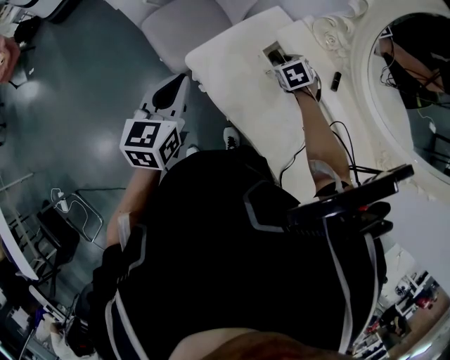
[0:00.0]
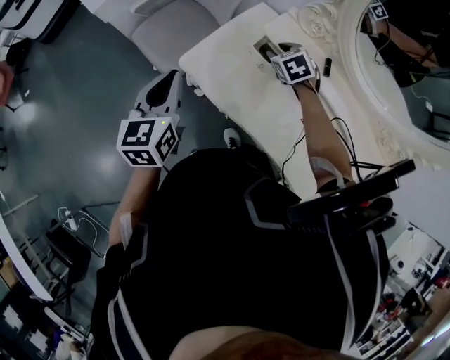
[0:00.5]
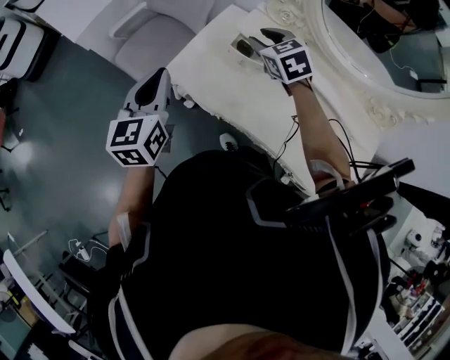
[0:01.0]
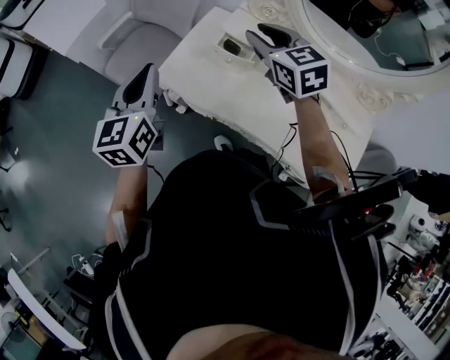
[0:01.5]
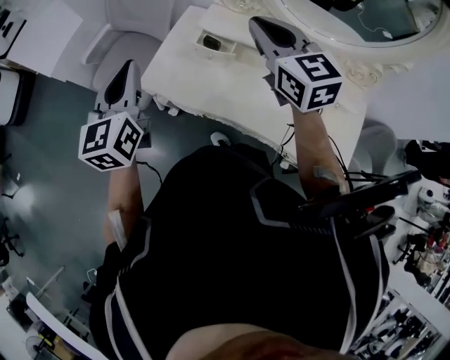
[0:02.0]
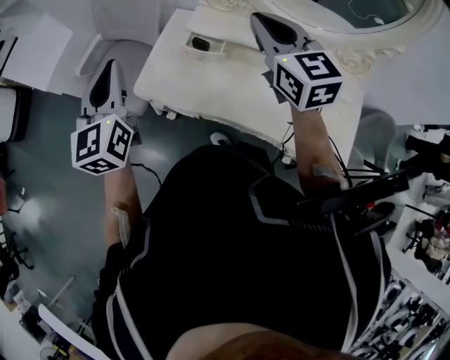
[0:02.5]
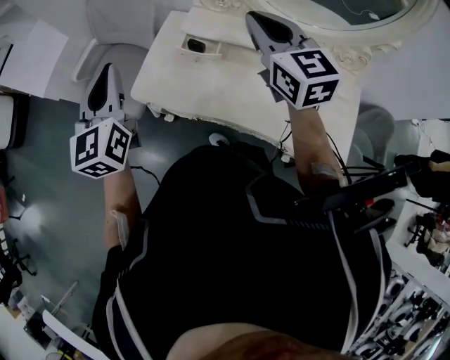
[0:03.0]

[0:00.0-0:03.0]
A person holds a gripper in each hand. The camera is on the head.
0:00.0 to 0:01.5: The left gripper is displaced upward by approximately 10 cm. Meanwhile the right gripper shifts approximately 30 cm upward, and angles its fingers upward, by roughly 40 degrees.
0:01.5 to 0:03.0: The right gripper moves to the right and upward, some 10 cm, rotates approximately 20 degrees, and closes its fingers. Meanwhile the left gripper shifts by approximately 5 cm.

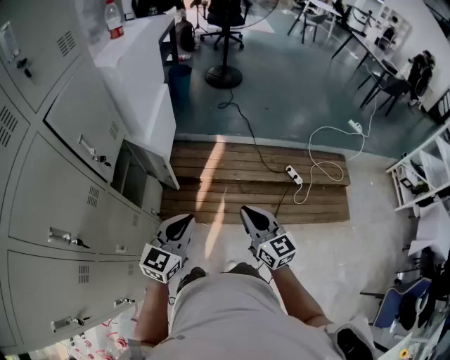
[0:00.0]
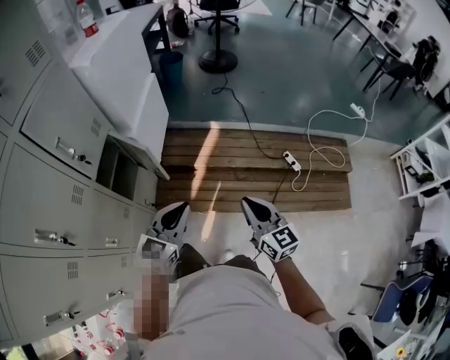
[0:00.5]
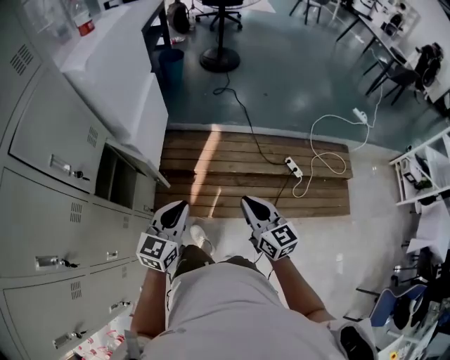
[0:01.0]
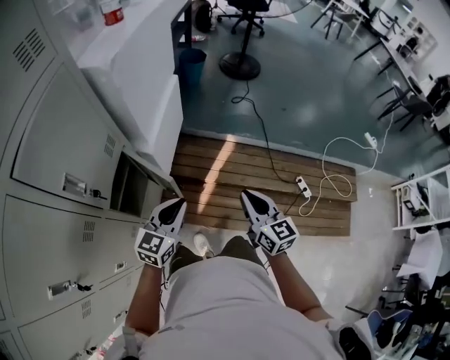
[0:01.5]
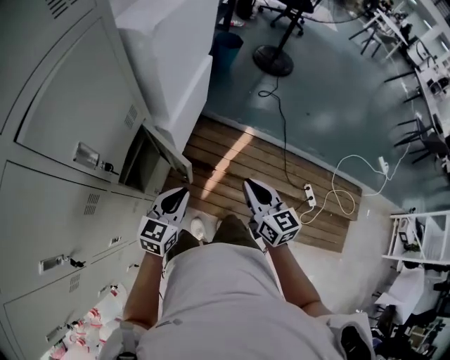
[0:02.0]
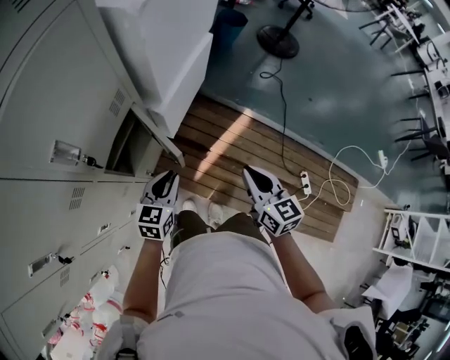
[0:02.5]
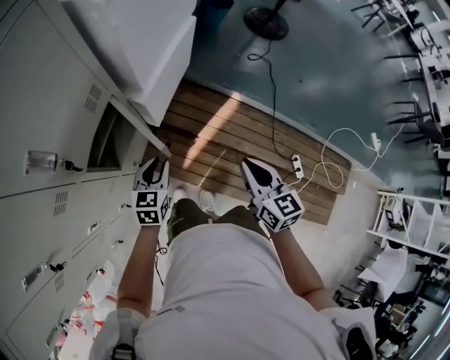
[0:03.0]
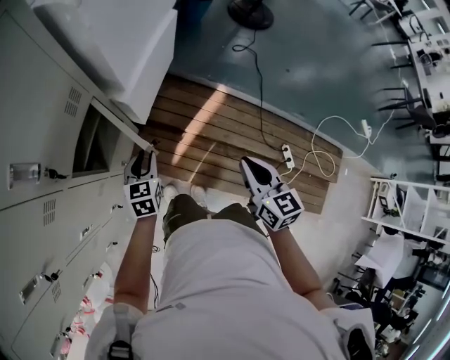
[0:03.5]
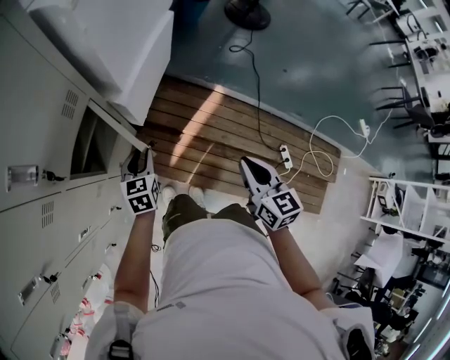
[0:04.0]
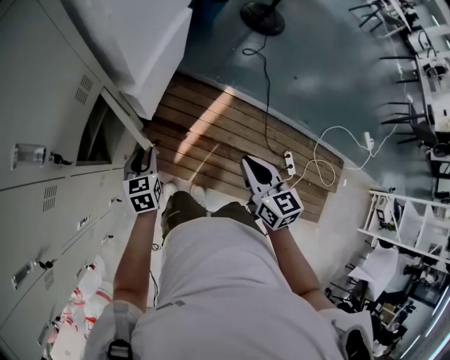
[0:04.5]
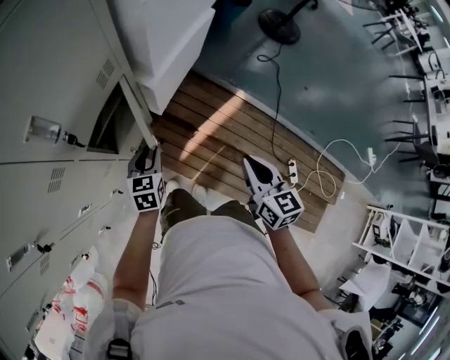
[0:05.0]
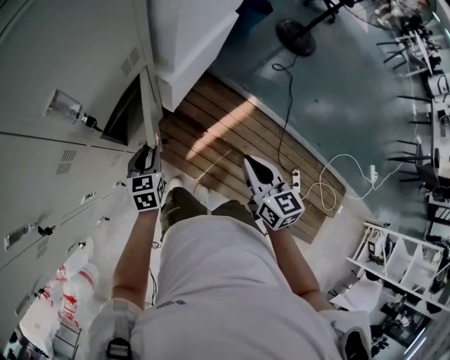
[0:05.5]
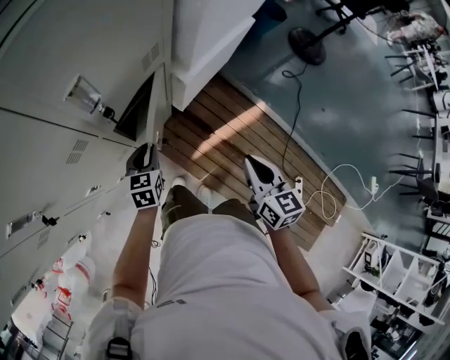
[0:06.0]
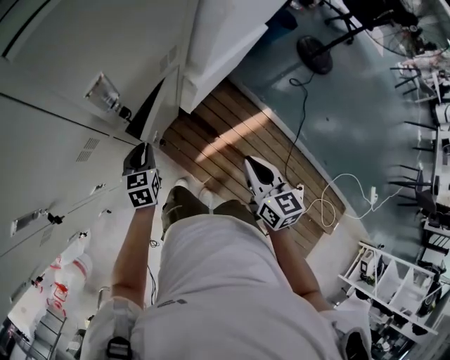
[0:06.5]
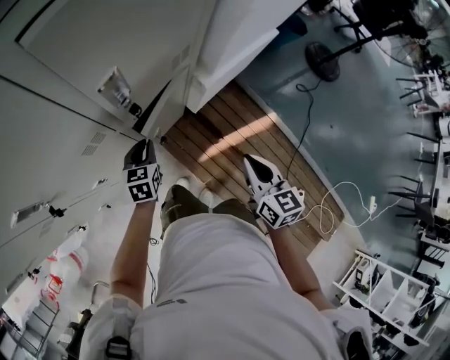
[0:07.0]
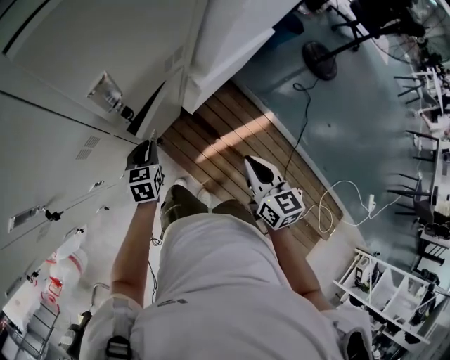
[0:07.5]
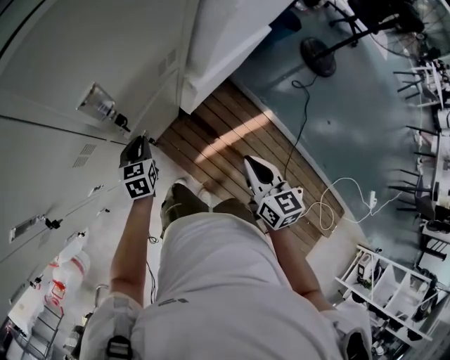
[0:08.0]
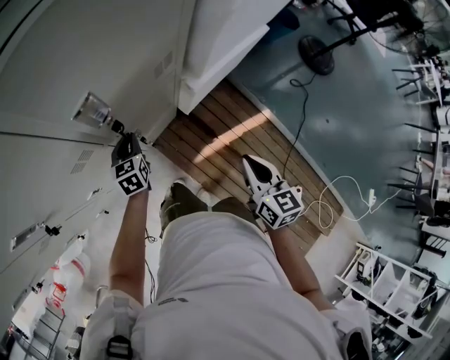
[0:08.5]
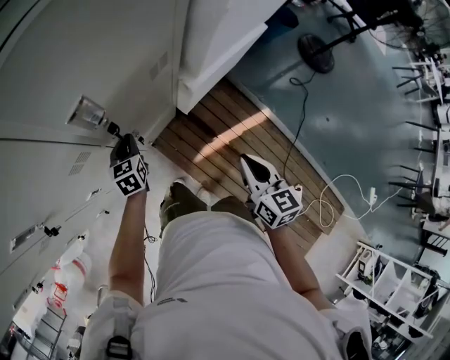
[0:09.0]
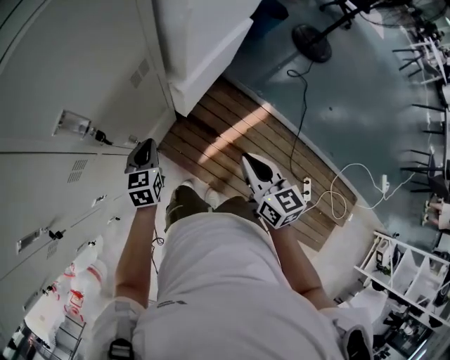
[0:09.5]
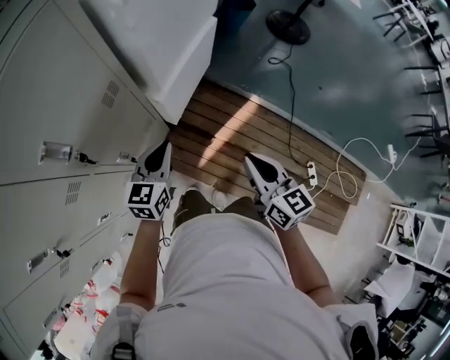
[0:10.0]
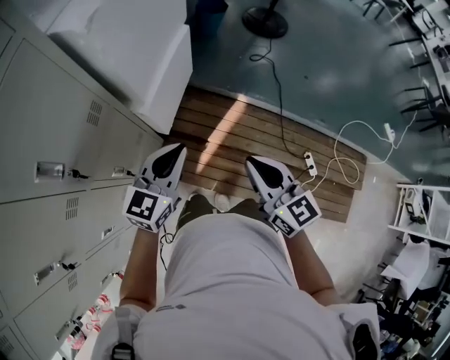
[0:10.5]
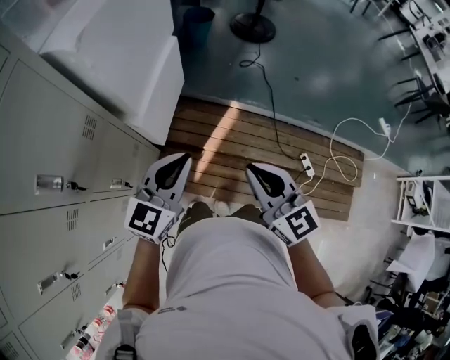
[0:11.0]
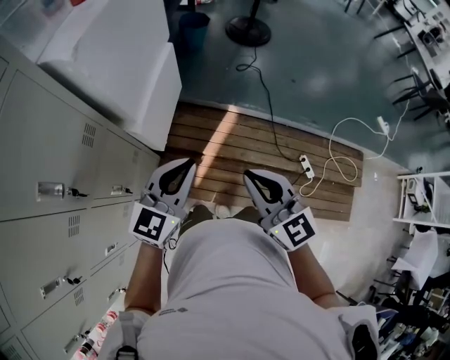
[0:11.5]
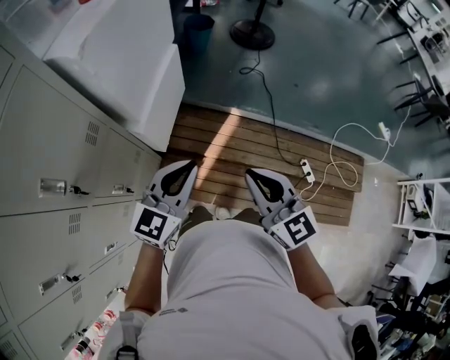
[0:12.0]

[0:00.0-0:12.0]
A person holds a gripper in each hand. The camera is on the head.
0:00.0 to 0:02.0: The left gripper shifts some 25 cm forward, to the left and downward, and rotates roughly 20 degrees. The right gripper travels forward by roughly 25 cm.
0:02.0 to 0:04.0: The left gripper goes roughly 15 cm downward and forward, rotates approximately 30 degrees, and opens its fingers, while the right gripper shifts roughly 10 cm to the right.
0:04.0 to 0:06.0: The two grippers go some 15 cm to the left.
0:06.0 to 0:08.0: The left gripper shifts approximately 5 cm forward.
0:08.0 to 0:10.0: The right gripper shifts by about 10 cm. Meanwhile the left gripper changes place by roughly 25 cm, and changes its angle by about 40 degrees.
0:10.0 to 0:12.0: The right gripper goes about 10 cm upward and to the right, and rotates some 20 degrees; the left gripper travels to the right and upward by some 20 cm, and rotates roughly 30 degrees.

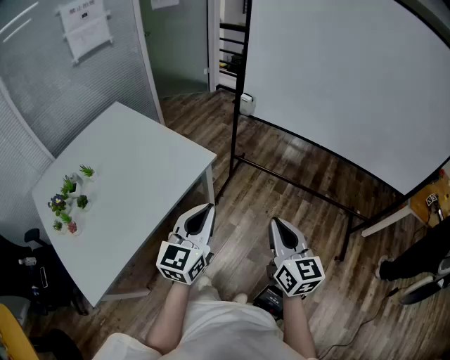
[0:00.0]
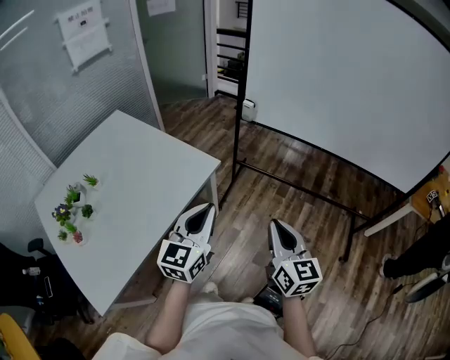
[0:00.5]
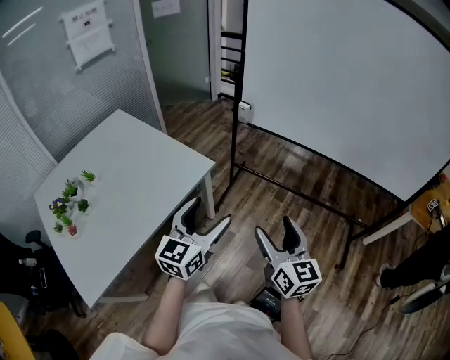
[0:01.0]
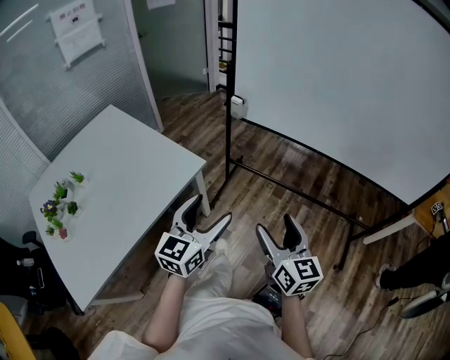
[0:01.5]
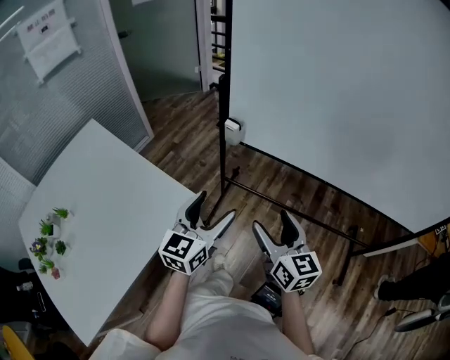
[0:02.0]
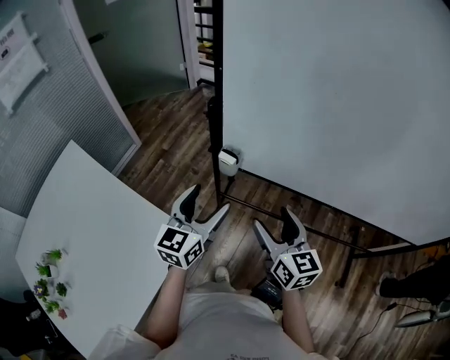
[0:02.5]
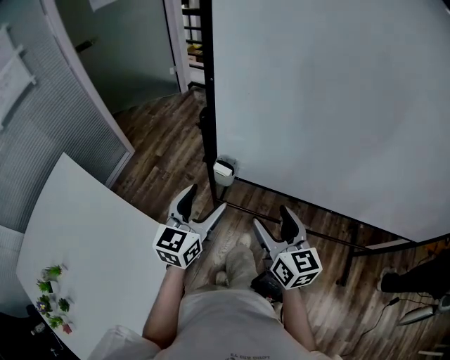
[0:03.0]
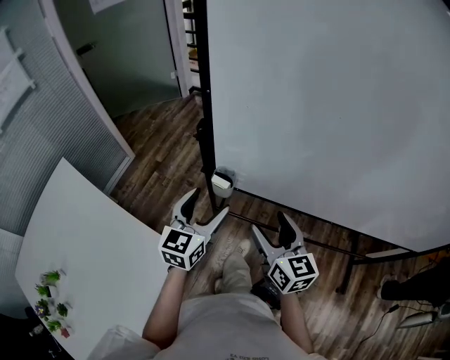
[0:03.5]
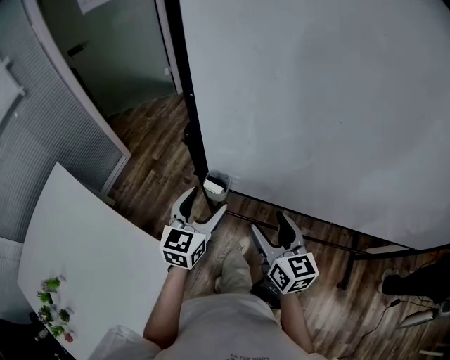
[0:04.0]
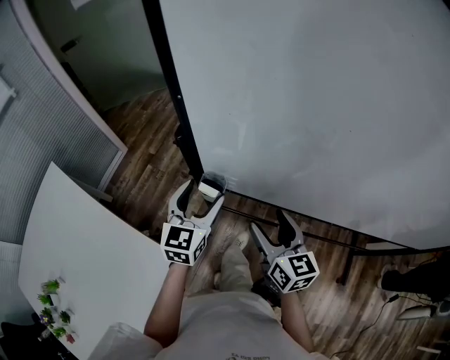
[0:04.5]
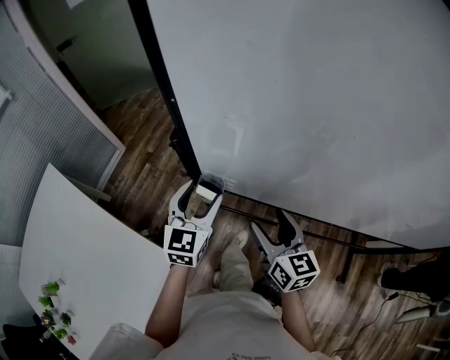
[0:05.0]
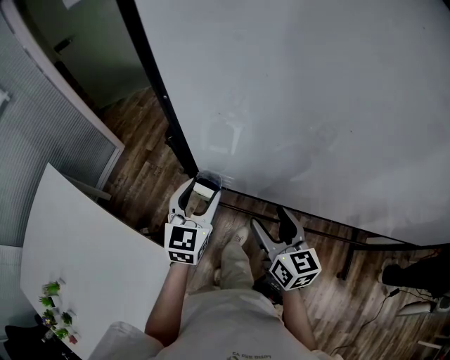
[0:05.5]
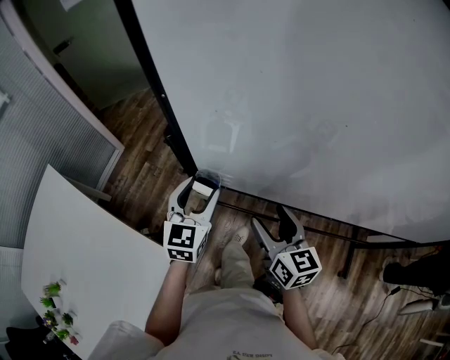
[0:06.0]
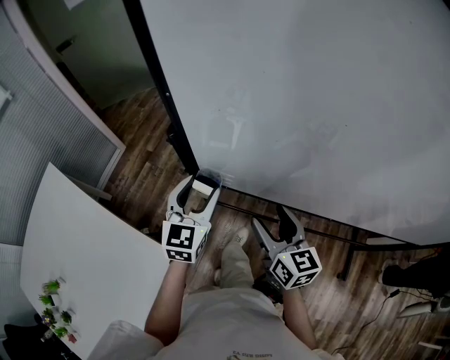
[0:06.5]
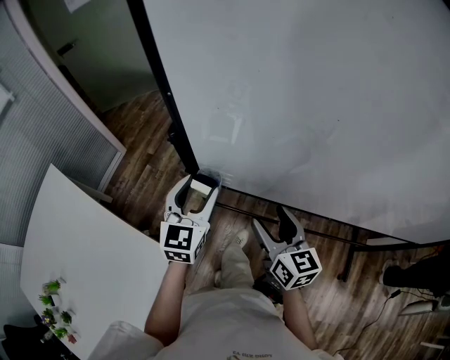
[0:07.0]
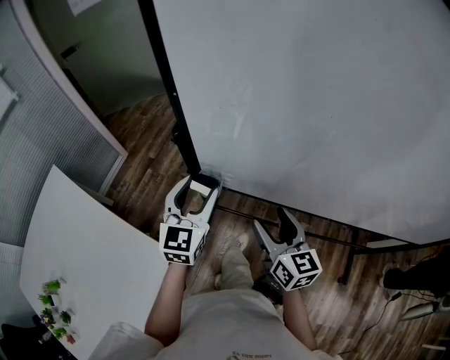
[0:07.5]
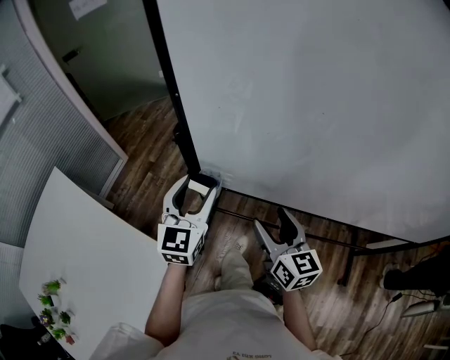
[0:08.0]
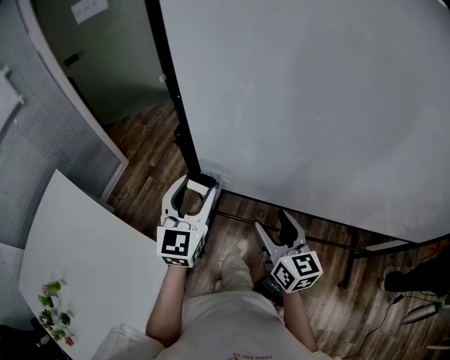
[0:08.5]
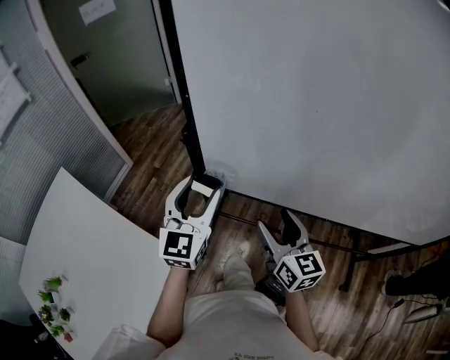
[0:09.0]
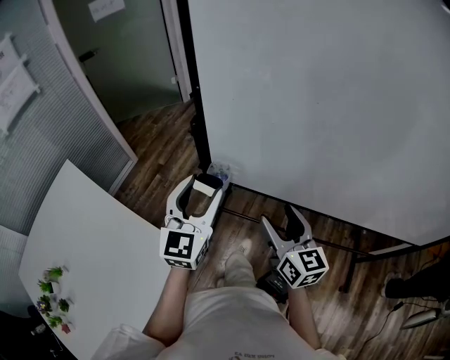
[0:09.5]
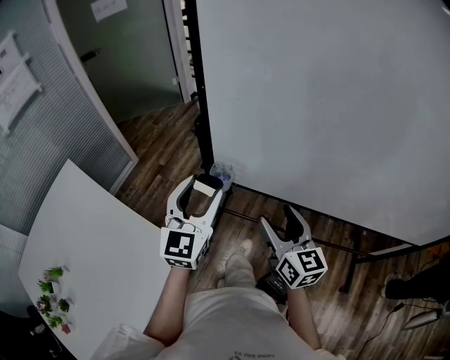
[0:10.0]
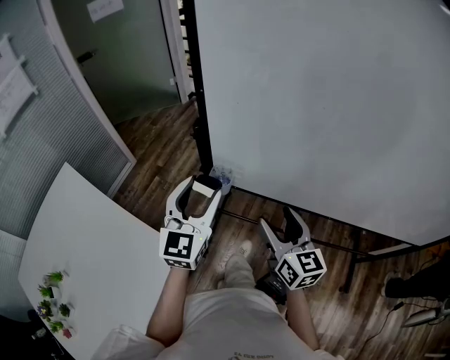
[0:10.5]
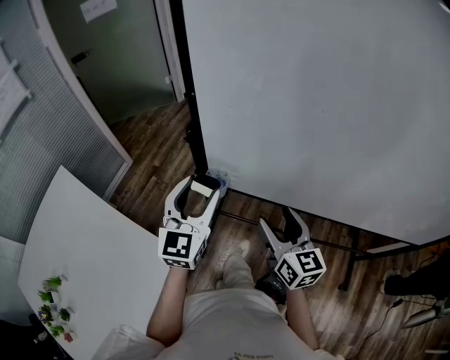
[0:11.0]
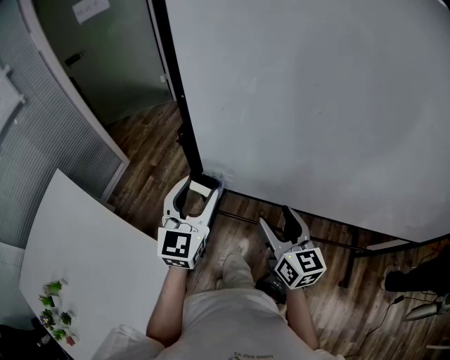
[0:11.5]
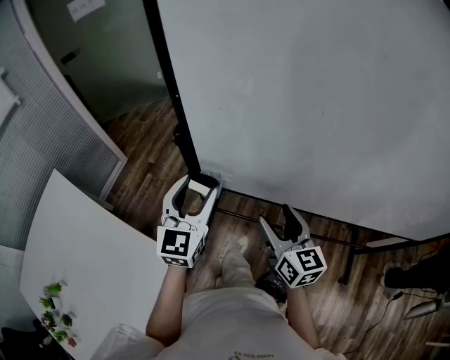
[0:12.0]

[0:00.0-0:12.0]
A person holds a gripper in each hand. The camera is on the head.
0:00.0 to 0:02.0: Both grippers move forward, about 30 cm. The left gripper opens. Meanwhile the right gripper opens.
0:02.0 to 0:04.0: The grippers both shift forward by approximately 30 cm.
0:04.0 to 0:06.0: The grippers move only a little.
0:06.0 to 0:08.0: The left gripper moves upward, some 5 cm.
0:08.0 to 0:10.0: The left gripper travels backward and upward by approximately 10 cm. Meanwhile the right gripper moves roughly 5 cm.
0:10.0 to 0:12.0: The right gripper shifts by about 5 cm. The left gripper shifts approximately 5 cm forward.
